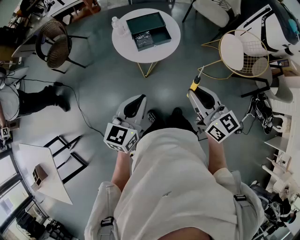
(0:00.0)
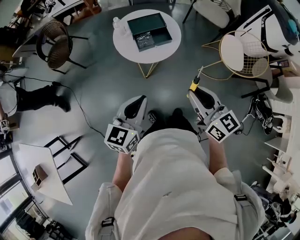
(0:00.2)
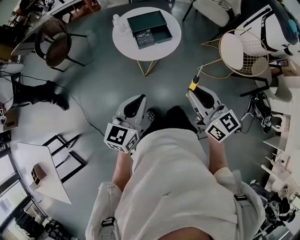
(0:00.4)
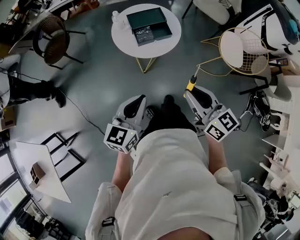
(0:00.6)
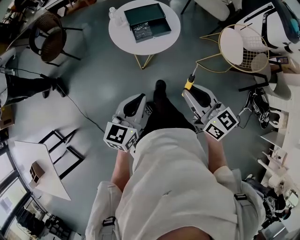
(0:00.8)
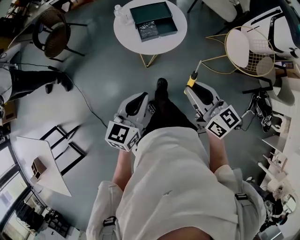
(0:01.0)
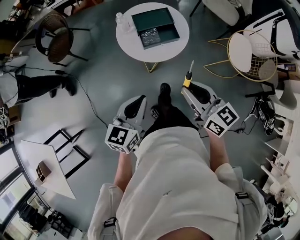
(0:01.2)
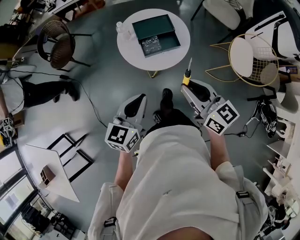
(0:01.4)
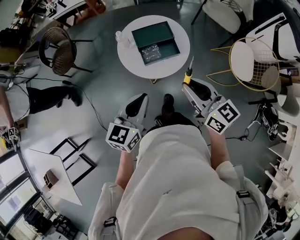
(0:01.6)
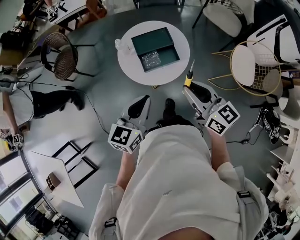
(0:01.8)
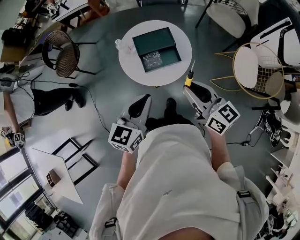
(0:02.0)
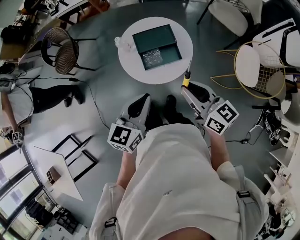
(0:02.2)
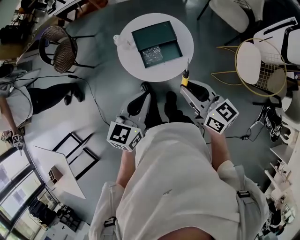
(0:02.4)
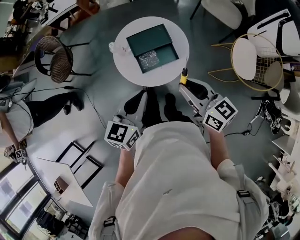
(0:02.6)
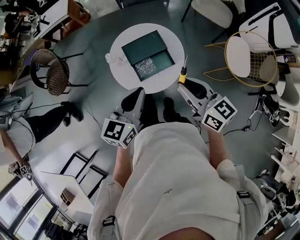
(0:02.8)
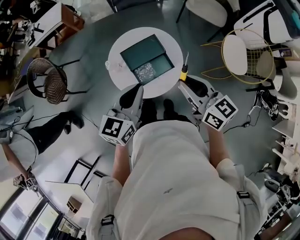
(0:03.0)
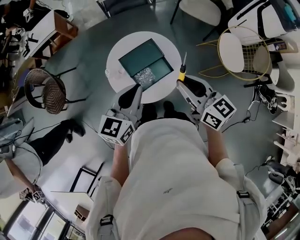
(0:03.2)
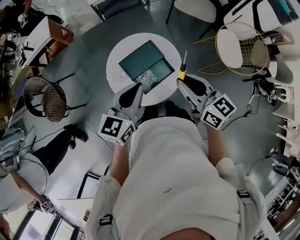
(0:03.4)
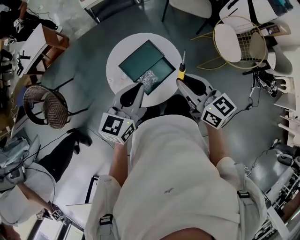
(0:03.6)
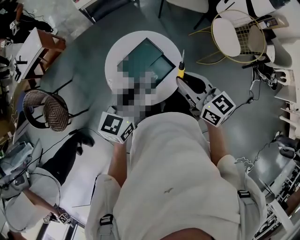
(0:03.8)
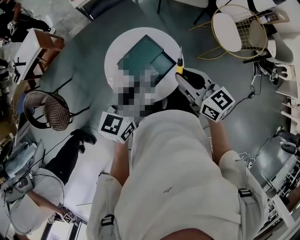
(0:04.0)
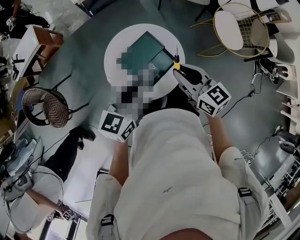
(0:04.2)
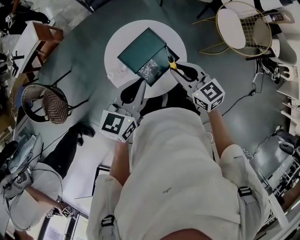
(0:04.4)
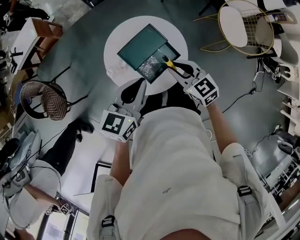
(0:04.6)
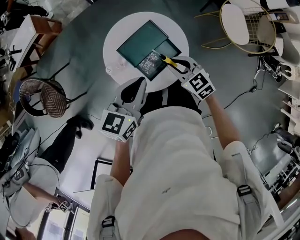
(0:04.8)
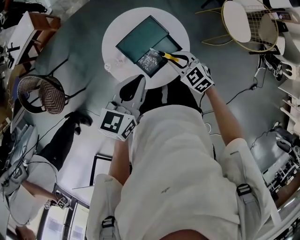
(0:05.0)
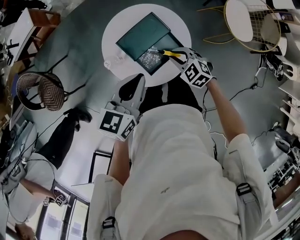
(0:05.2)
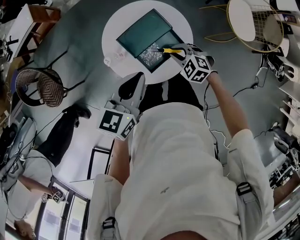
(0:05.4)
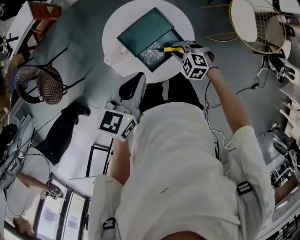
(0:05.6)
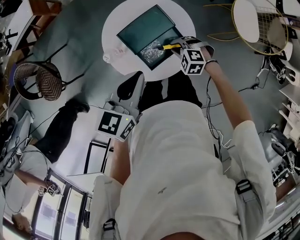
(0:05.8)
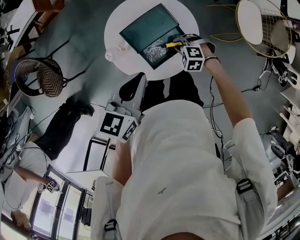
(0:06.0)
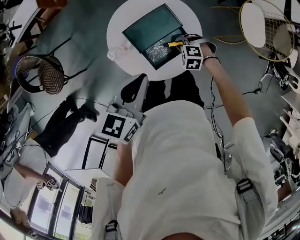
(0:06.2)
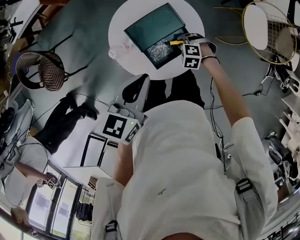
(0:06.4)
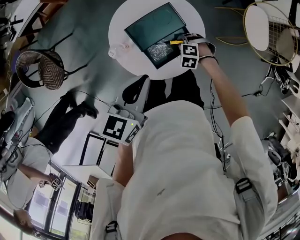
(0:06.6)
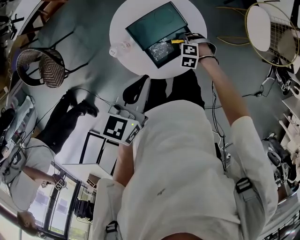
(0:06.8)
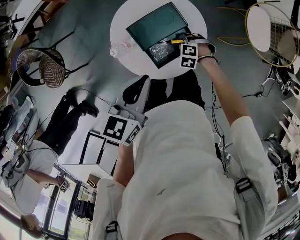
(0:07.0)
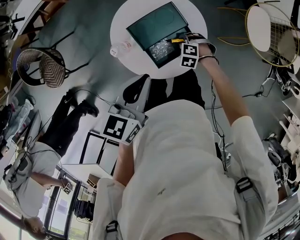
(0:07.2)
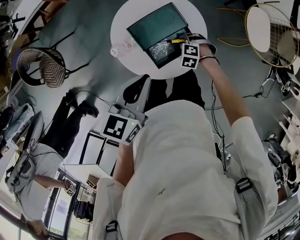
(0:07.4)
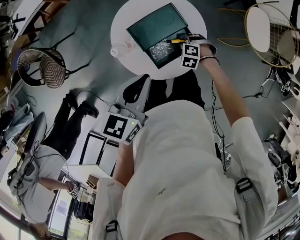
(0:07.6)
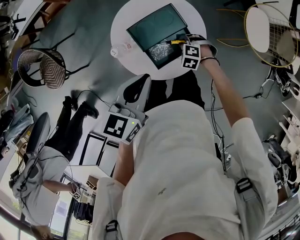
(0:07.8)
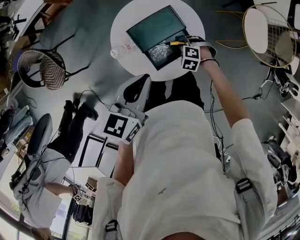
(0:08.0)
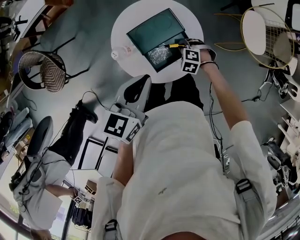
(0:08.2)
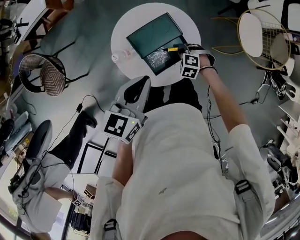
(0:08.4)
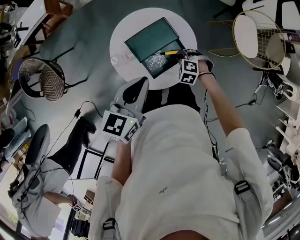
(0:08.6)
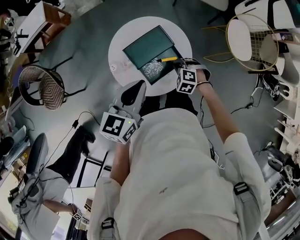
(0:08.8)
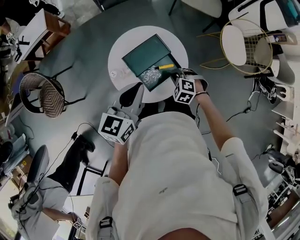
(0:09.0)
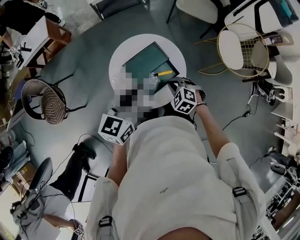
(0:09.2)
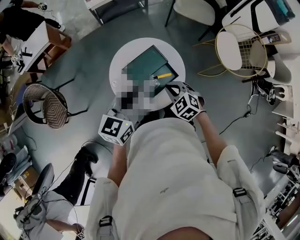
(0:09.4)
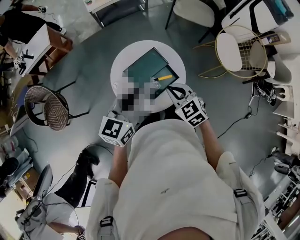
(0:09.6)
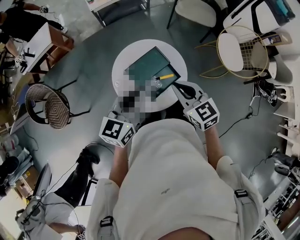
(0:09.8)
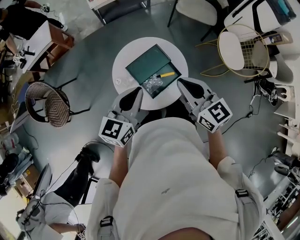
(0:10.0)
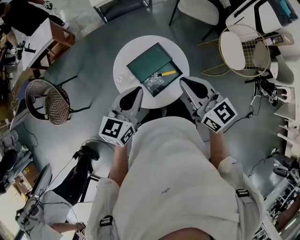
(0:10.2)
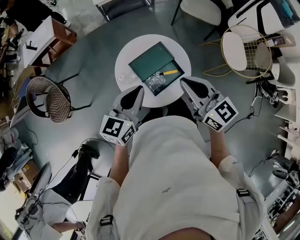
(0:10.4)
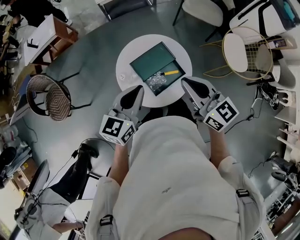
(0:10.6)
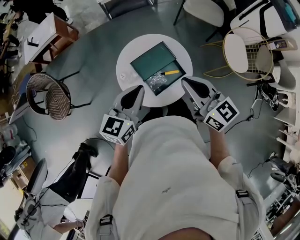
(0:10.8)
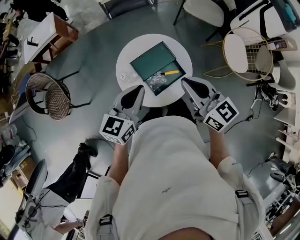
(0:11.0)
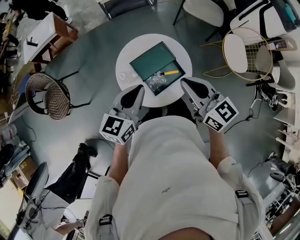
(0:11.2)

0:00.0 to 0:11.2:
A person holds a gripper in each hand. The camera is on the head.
0:00.0 to 0:01.6: The grippers both shift forward by approximately 15 cm.
0:01.6 to 0:03.2: The grippers both shift forward by some 20 cm.
0:03.2 to 0:04.8: The right gripper goes roughly 20 cm downward, and swivels approximately 30 degrees; the left gripper is displaced downward by approximately 5 cm.
0:04.8 to 0:06.4: The right gripper goes roughly 20 cm downward, and points its fingers roughly 40 degrees further downward.
0:06.4 to 0:08.0: The grippers stay close to where they were, moving slightly.
0:08.0 to 0:09.6: The left gripper shifts some 5 cm upward; the right gripper moves upward, approximately 25 cm, and angles its fingers upward, by some 30 degrees.
0:09.6 to 0:11.2: The right gripper shifts roughly 15 cm upward, and changes its angle by roughly 40 degrees.

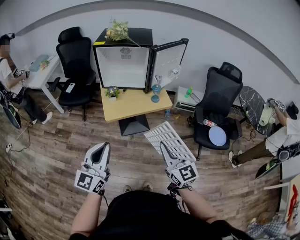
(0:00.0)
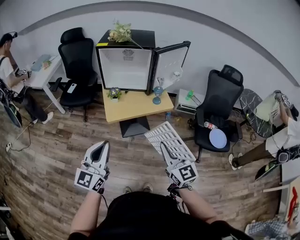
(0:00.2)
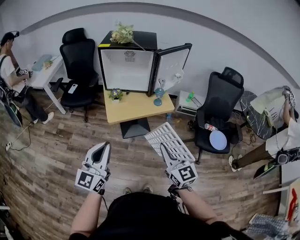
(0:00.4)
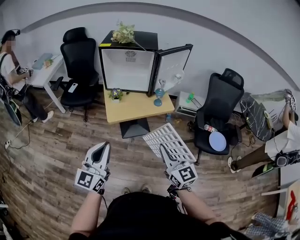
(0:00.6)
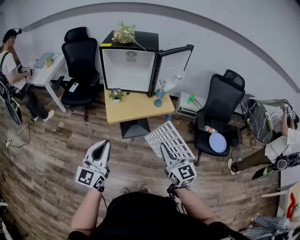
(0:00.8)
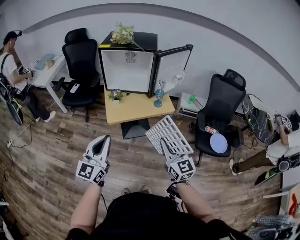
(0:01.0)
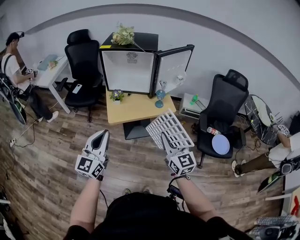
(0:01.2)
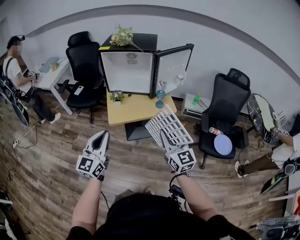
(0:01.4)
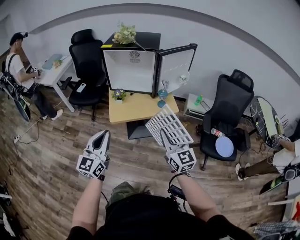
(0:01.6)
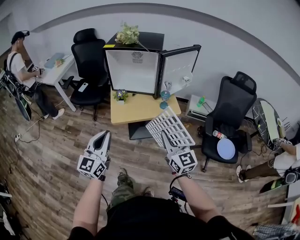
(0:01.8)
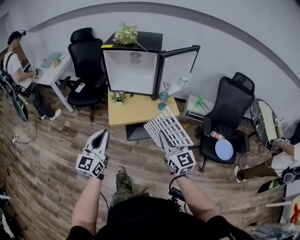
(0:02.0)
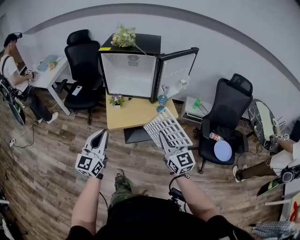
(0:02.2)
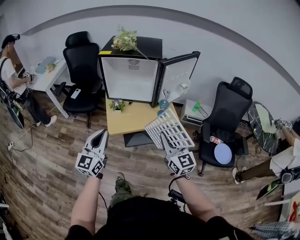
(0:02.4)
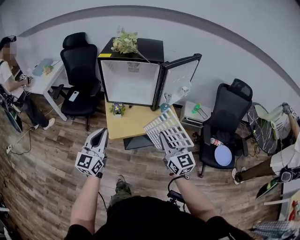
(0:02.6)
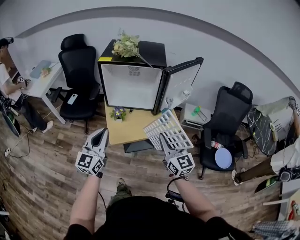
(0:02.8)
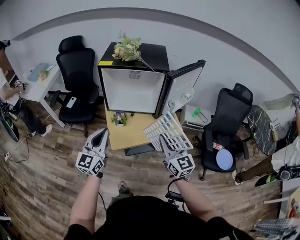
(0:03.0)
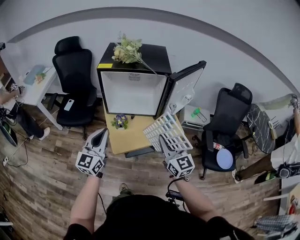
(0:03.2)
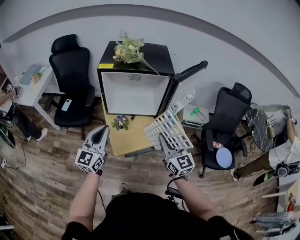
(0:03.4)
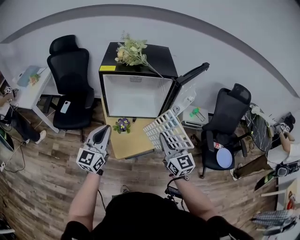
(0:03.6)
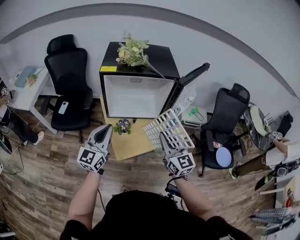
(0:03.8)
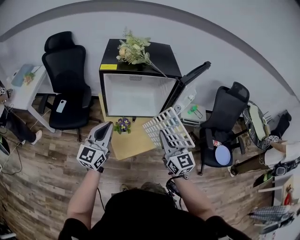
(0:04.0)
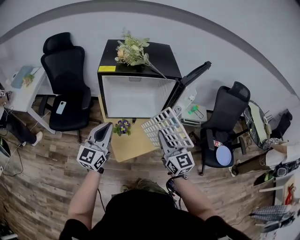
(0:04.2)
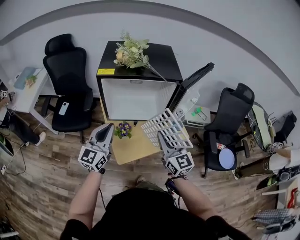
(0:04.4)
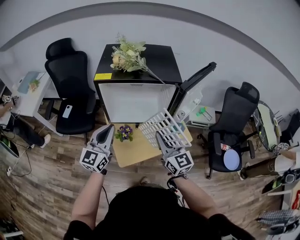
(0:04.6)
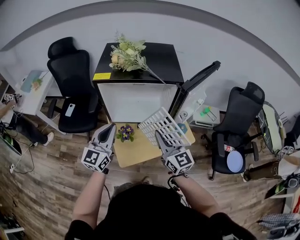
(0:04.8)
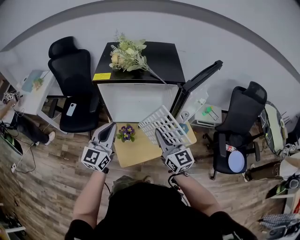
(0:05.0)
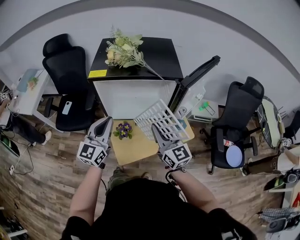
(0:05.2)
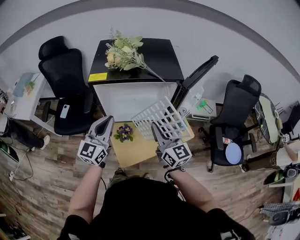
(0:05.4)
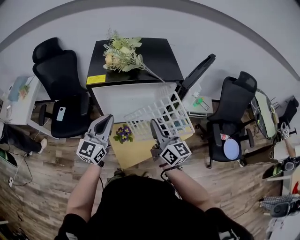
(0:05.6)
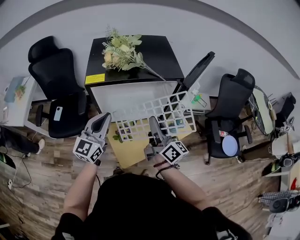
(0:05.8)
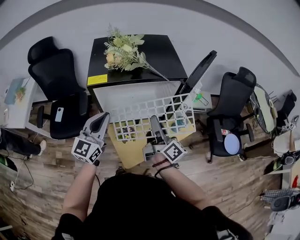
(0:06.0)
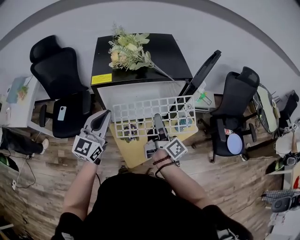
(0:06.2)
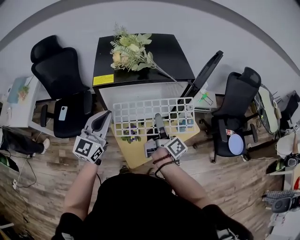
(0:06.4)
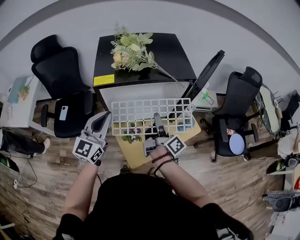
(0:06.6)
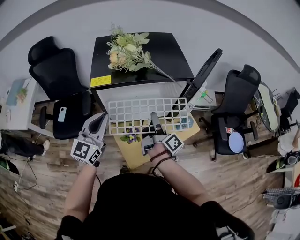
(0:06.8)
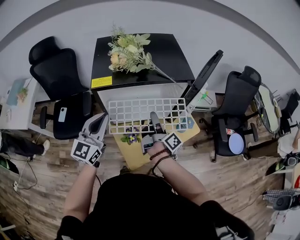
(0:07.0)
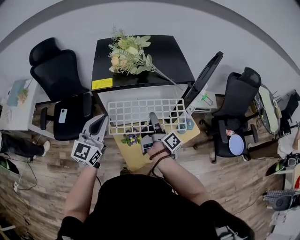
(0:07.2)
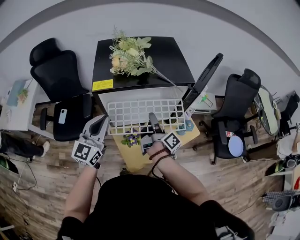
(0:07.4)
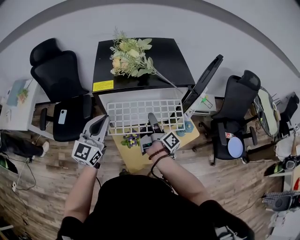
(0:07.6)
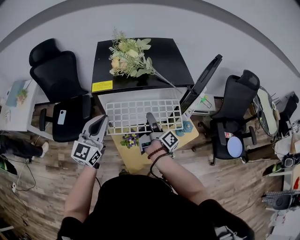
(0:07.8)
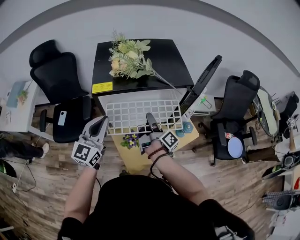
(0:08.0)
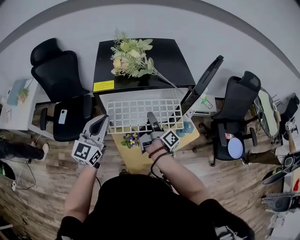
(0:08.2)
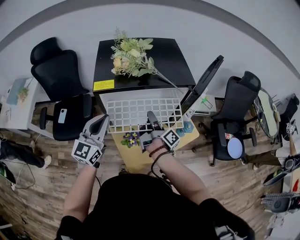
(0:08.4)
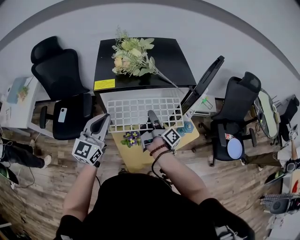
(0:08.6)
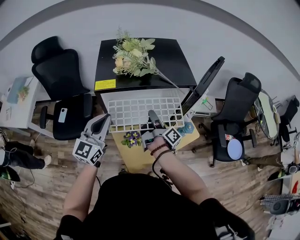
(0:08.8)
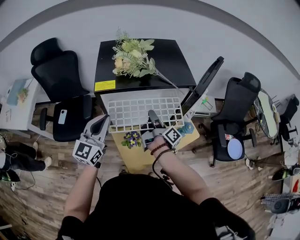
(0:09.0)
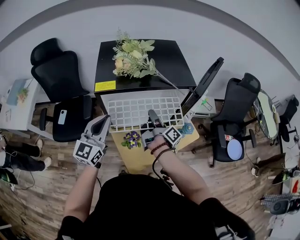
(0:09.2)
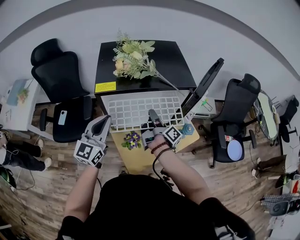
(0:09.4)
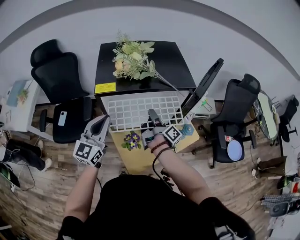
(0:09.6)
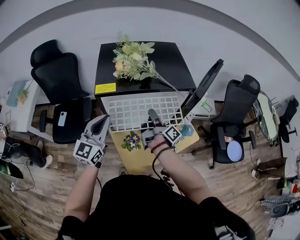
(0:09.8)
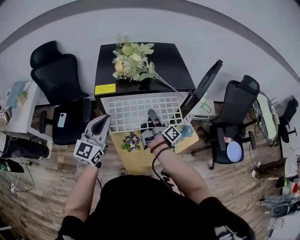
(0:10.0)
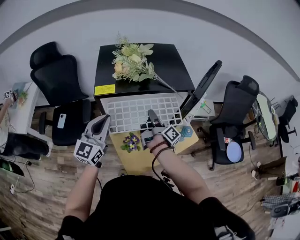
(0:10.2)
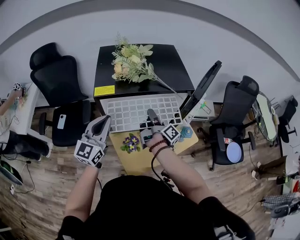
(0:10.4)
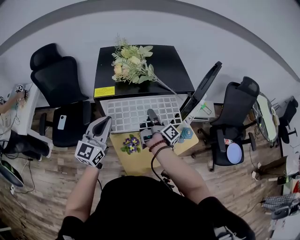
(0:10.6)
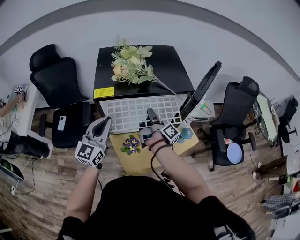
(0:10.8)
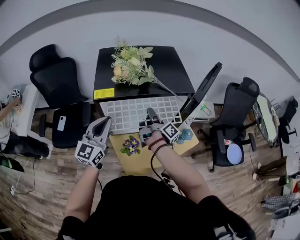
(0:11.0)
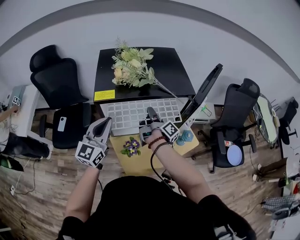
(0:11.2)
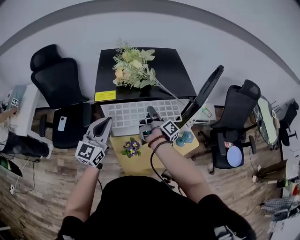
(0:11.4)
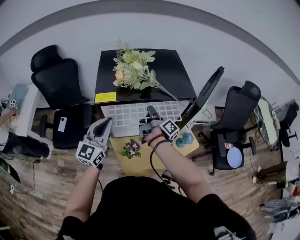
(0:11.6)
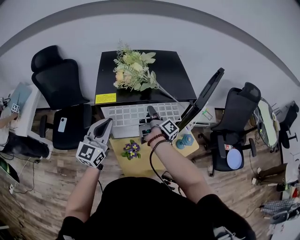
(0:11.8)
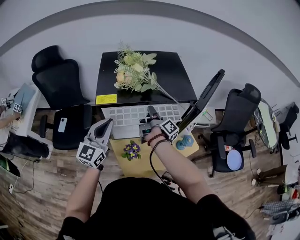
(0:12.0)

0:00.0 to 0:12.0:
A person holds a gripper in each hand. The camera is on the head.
0:00.0 to 0:01.6: The grippers both shift forward by some 10 cm.
0:01.6 to 0:03.0: The right gripper shifts roughly 20 cm forward and to the left. The left gripper goes roughly 20 cm forward.
0:03.0 to 0:04.4: The left gripper is displaced forward by roughly 15 cm. Meanwhile the right gripper travels forward and to the left by about 15 cm.
0:04.4 to 0:06.0: The grippers both shift forward by about 10 cm. The right gripper rotates around the line of its fingers by about 50 degrees, clockwise from behind.
0:06.0 to 0:07.6: The right gripper travels downward and forward by roughly 10 cm, and changes its angle by about 30 degrees.
0:07.6 to 0:10.4: There are only small adjustments of the grippers.
0:10.4 to 0:12.0: The right gripper shifts about 5 cm forward.

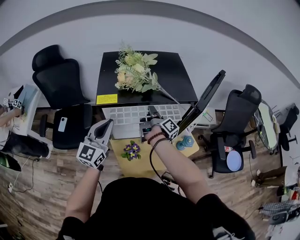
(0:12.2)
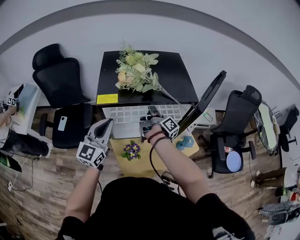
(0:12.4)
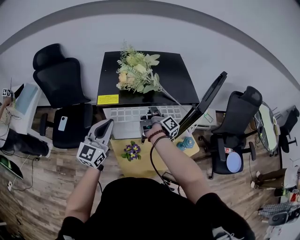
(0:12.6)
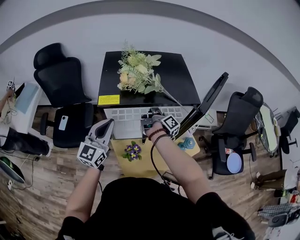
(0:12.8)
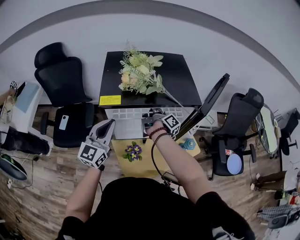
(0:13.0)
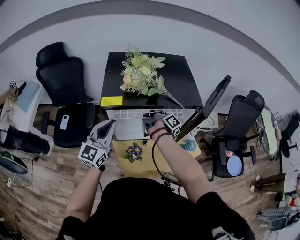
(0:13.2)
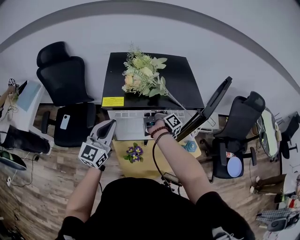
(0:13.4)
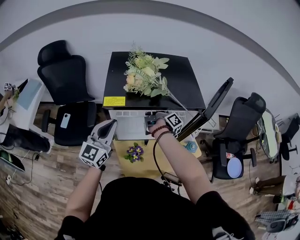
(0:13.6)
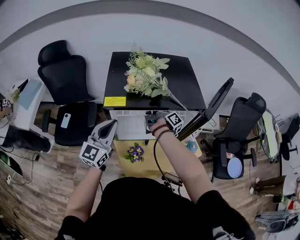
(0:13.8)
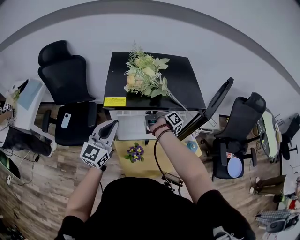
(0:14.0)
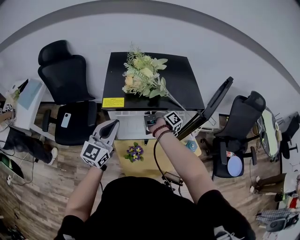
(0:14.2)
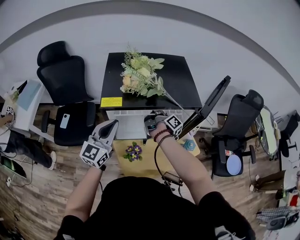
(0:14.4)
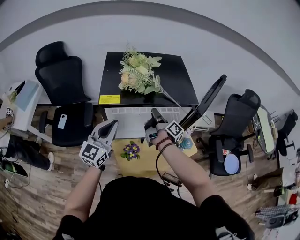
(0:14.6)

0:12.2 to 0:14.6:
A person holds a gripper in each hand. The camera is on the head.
0:12.2 to 0:13.4: The grippers stay close to where they were, moving slightly.
0:13.4 to 0:14.6: The right gripper moves backward, roughly 5 cm.
